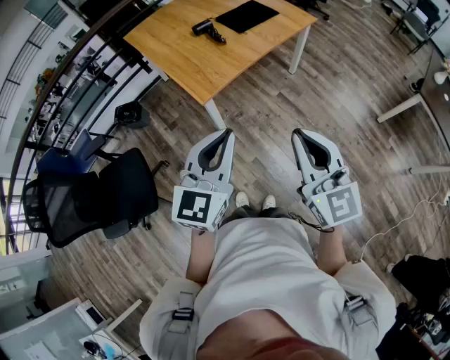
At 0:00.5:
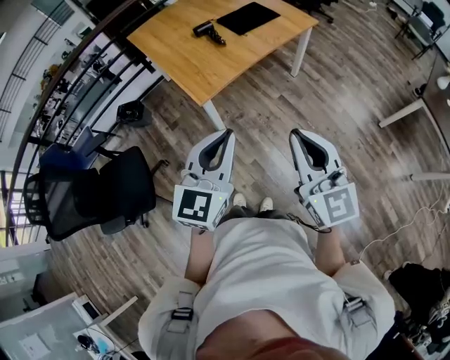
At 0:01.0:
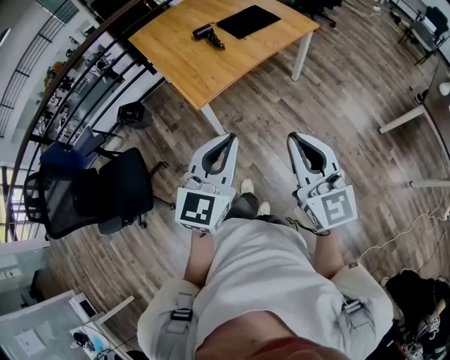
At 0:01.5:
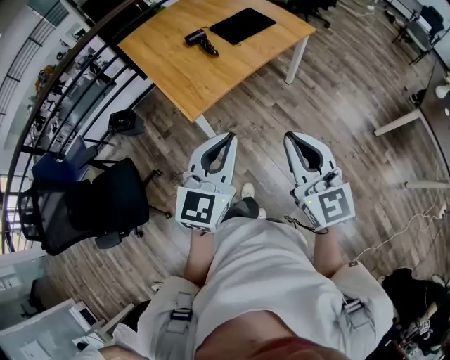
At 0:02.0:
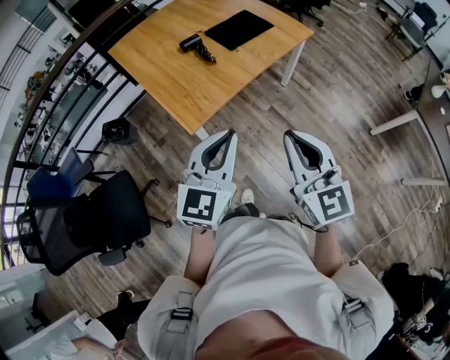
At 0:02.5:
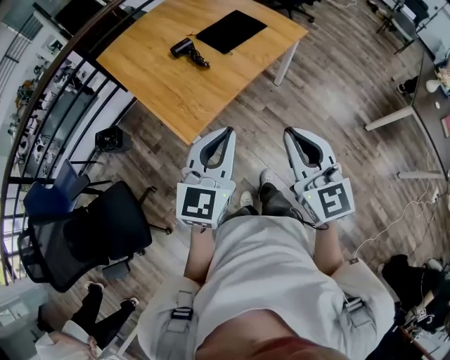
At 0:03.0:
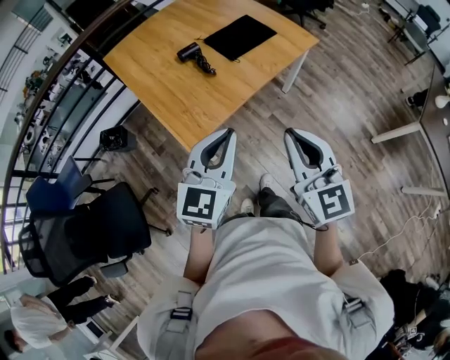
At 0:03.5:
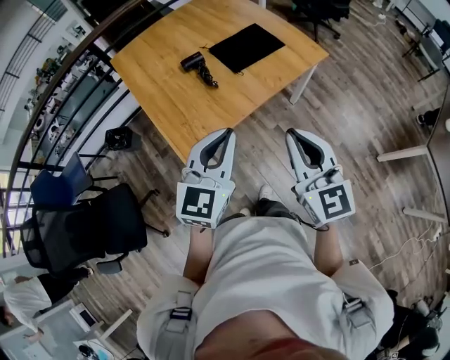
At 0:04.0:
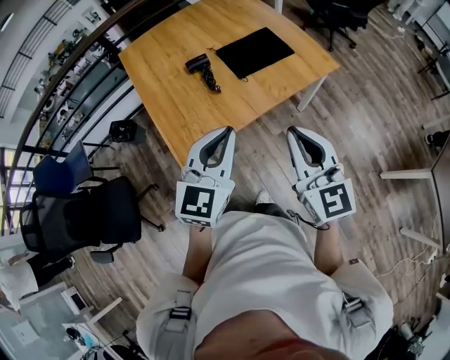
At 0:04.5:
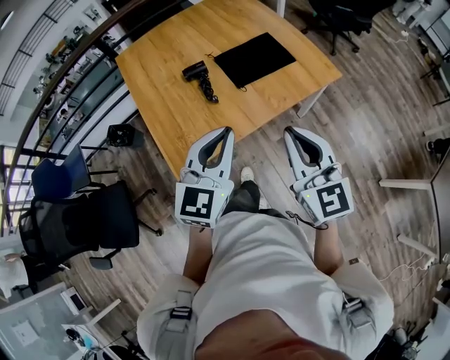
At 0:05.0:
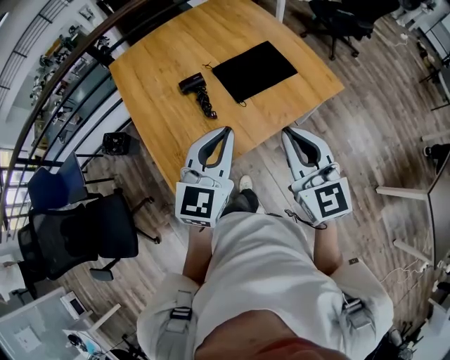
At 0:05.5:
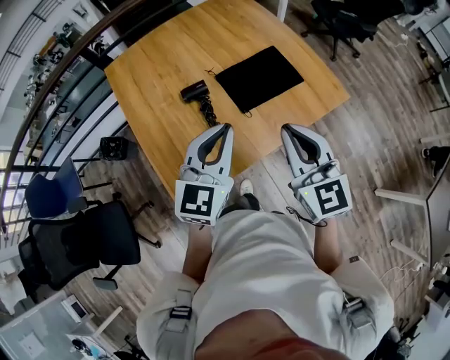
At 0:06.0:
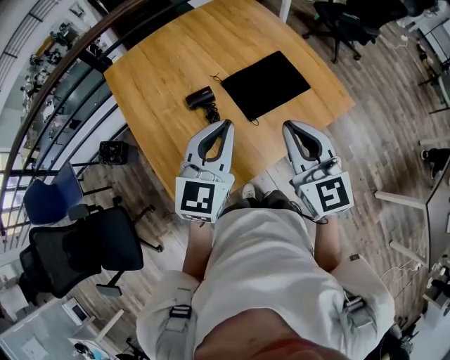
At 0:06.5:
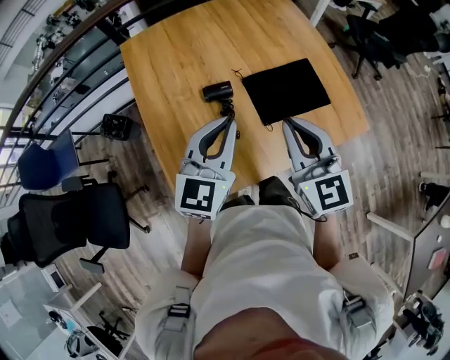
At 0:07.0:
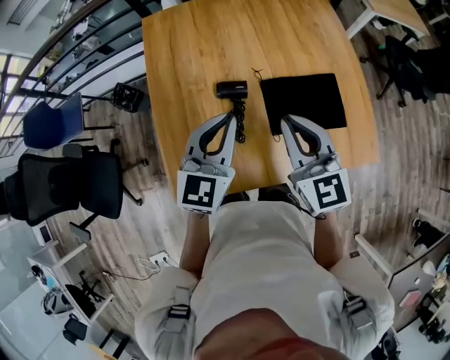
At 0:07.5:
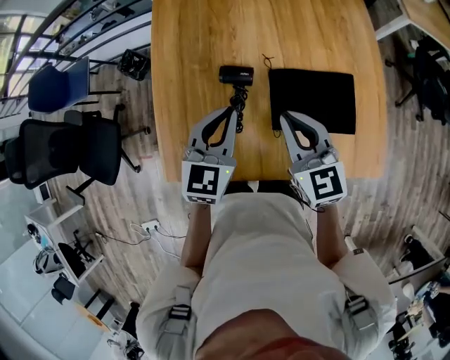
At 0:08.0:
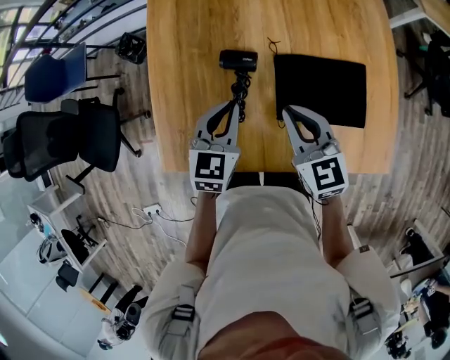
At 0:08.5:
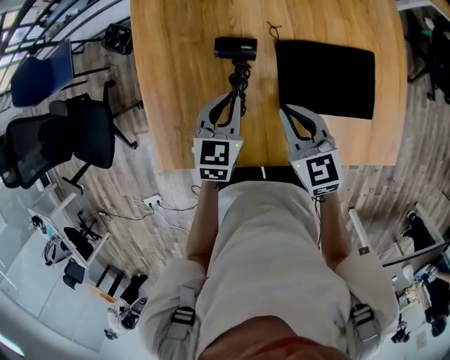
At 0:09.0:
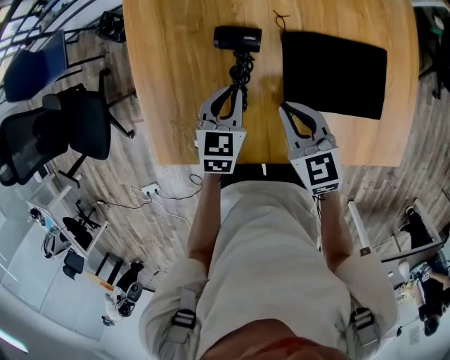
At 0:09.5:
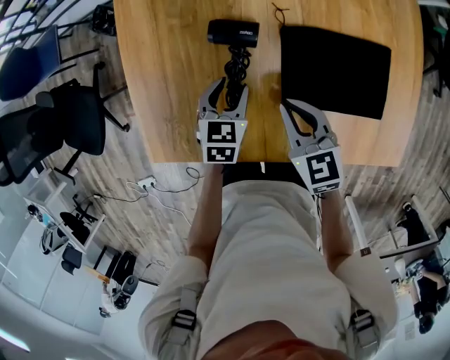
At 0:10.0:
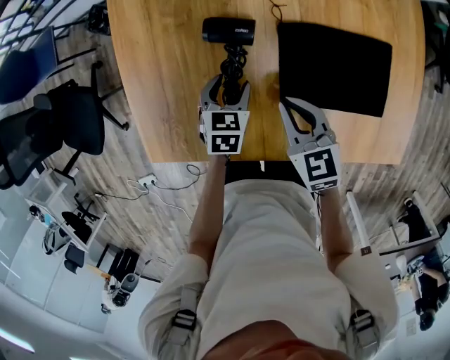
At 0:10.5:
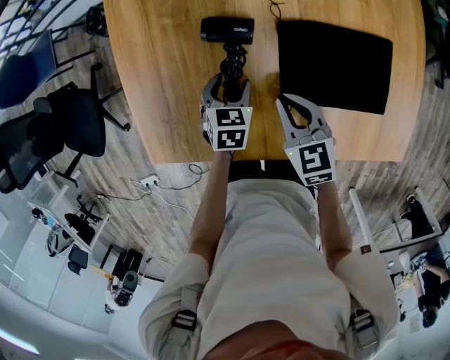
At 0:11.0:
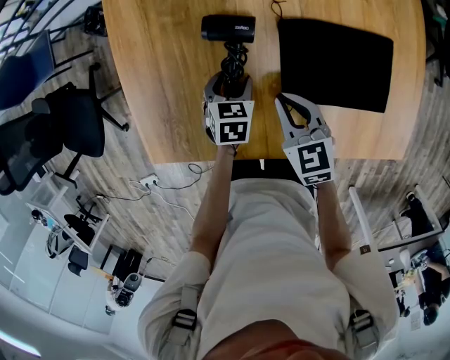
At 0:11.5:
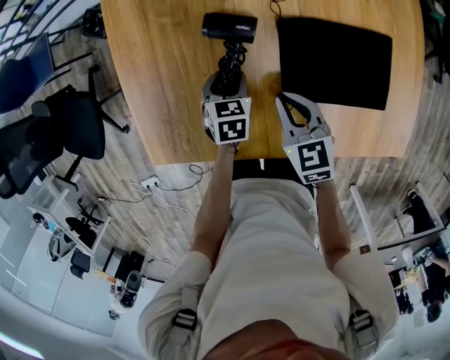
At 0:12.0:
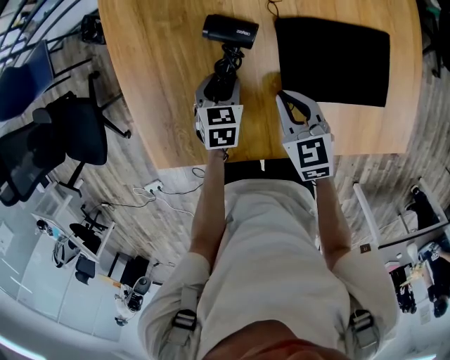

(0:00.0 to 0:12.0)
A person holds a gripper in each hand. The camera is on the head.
0:00.0 - 0:02.0: The two grippers go some 15 cm forward.
0:02.0 - 0:04.0: The grippers both shift forward by some 25 cm.
0:04.0 - 0:06.0: Both grippers travel together forward, approximately 25 cm.
0:06.0 - 0:08.0: Both grippers move downward, some 20 cm. The left gripper turns by about 40 degrees. The right gripper rotates approximately 40 degrees.
0:08.0 - 0:10.0: Both grippers travel together downward, about 15 cm. The left gripper swivels approximately 20 degrees, and opens up.
0:10.0 - 0:12.0: There are only small adjustments of the grippers.

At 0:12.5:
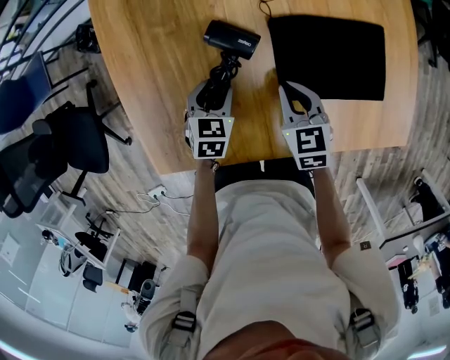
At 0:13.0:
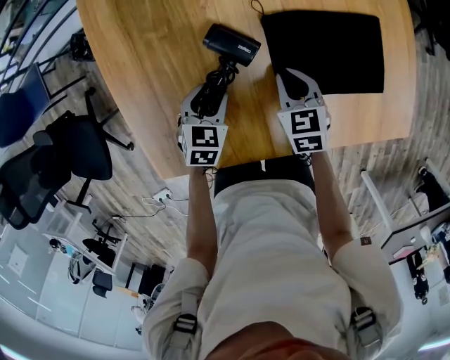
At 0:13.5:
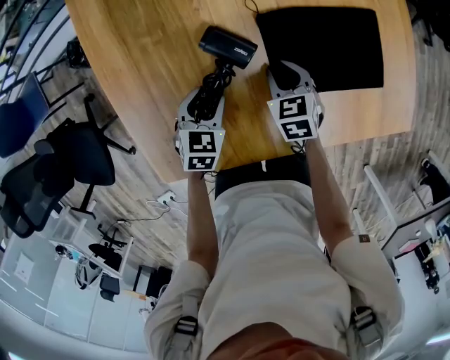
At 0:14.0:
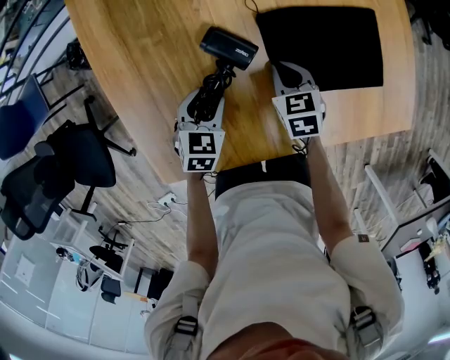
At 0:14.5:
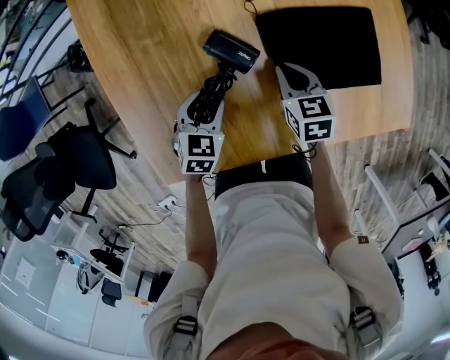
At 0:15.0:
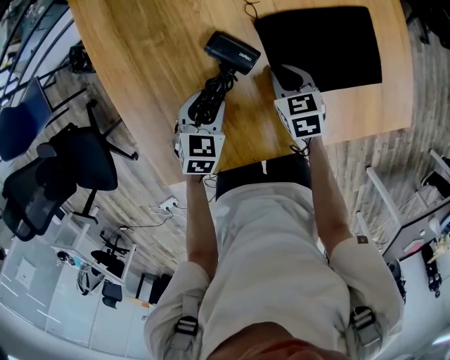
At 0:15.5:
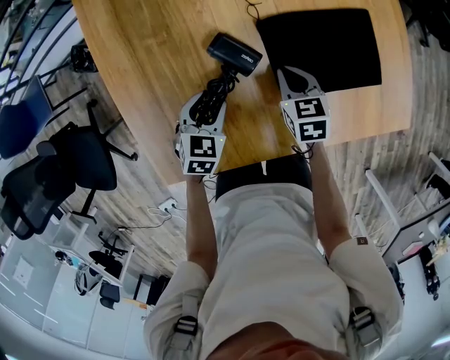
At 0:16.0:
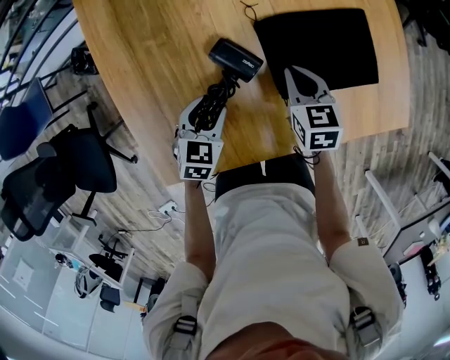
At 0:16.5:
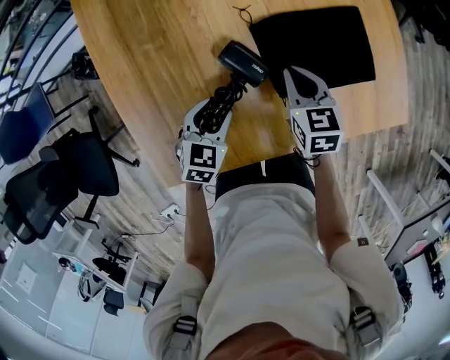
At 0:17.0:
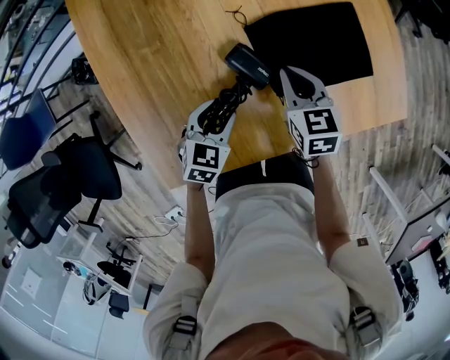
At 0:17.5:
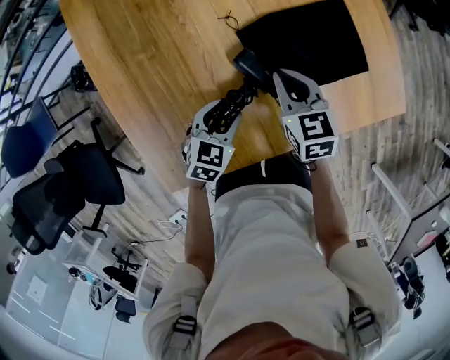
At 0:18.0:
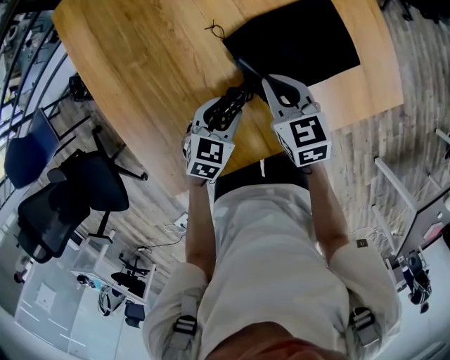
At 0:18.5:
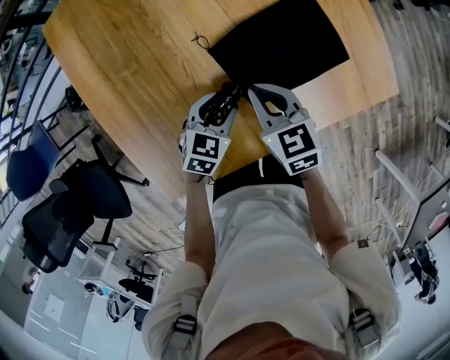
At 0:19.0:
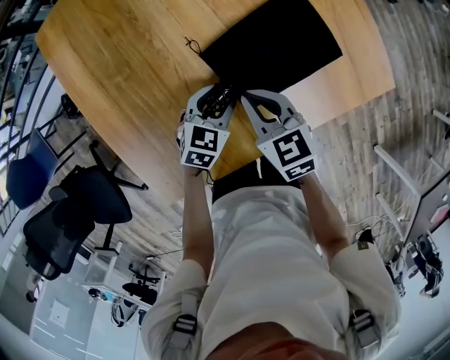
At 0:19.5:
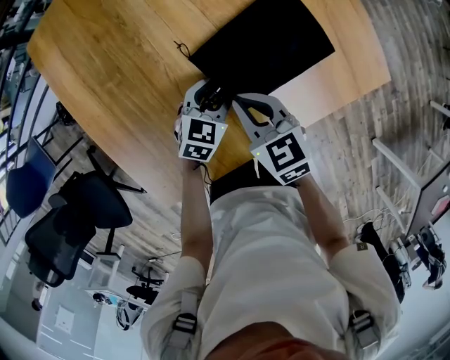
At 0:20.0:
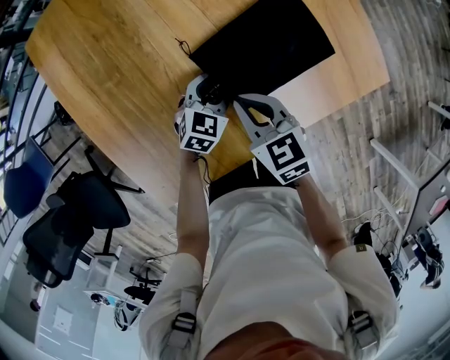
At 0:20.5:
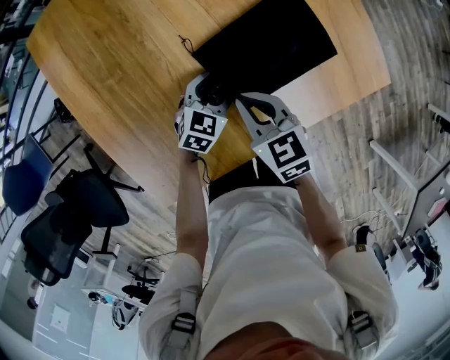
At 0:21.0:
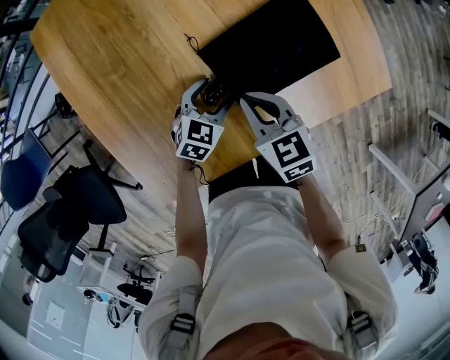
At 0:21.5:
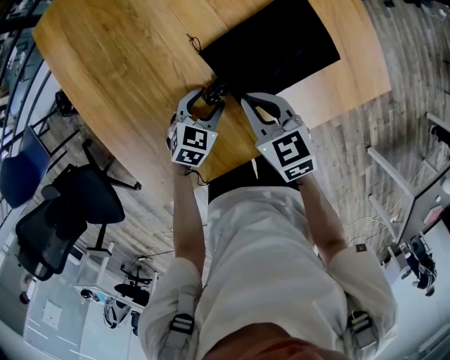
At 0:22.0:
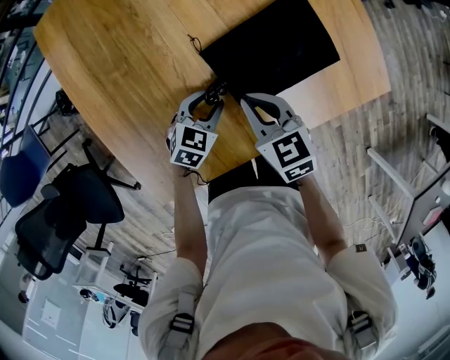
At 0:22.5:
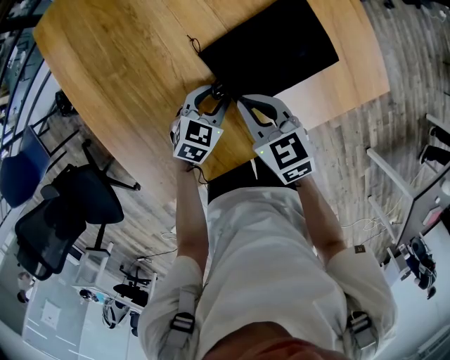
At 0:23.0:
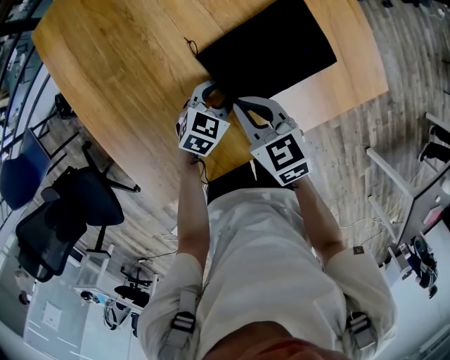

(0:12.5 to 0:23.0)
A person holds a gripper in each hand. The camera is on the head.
0:14.5 - 0:16.5: The right gripper goes approximately 5 cm upward.
0:16.5 - 0:19.0: The right gripper shifts about 5 cm backward, while the left gripper goes some 10 cm to the right.
0:19.0 - 0:21.0: The grippers stay close to where they were, moving slightly.
0:21.0 - 0:23.0: The left gripper closes.

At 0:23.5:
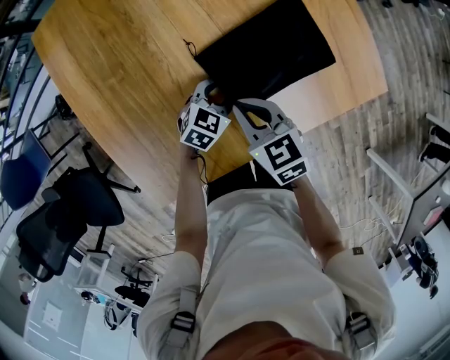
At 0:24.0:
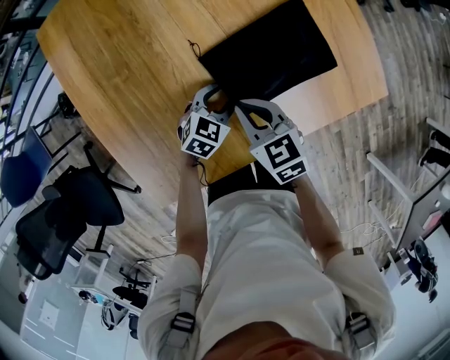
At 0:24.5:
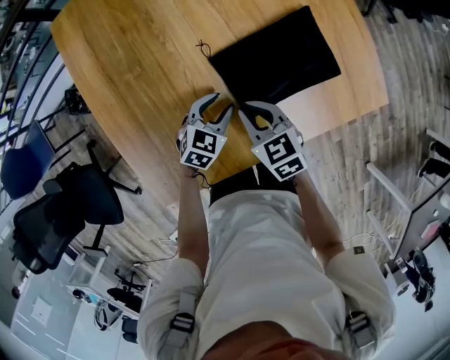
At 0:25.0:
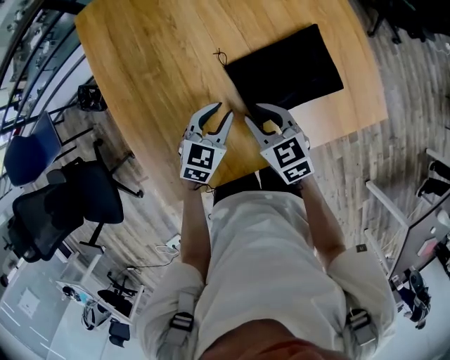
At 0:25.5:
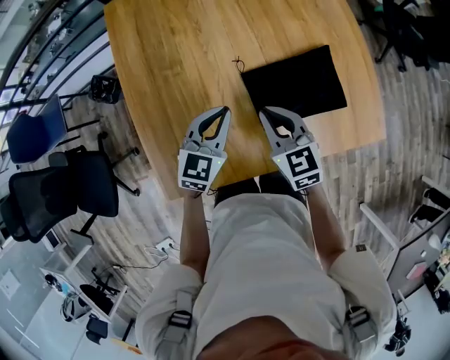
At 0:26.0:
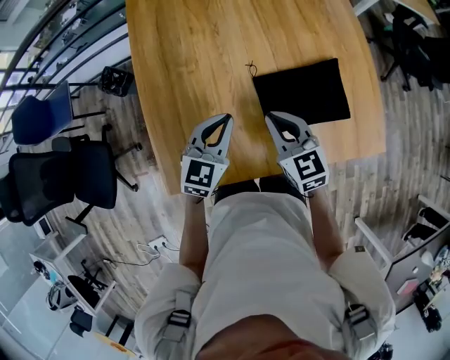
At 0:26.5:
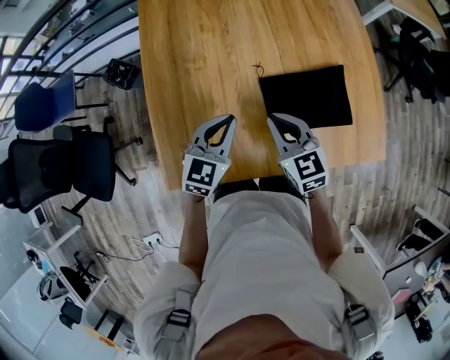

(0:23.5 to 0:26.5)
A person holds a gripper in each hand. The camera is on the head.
0:23.5 - 0:25.0: The left gripper shifts some 15 cm upward and to the left, while the right gripper opens.
0:25.0 - 0:26.5: The left gripper heads upward and to the left, covering roughly 10 cm, and closes up. The right gripper moves upward, roughly 10 cm, and closes its fingers.

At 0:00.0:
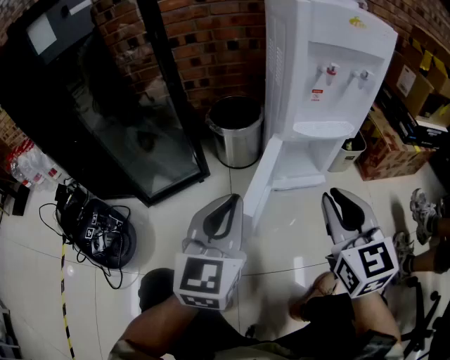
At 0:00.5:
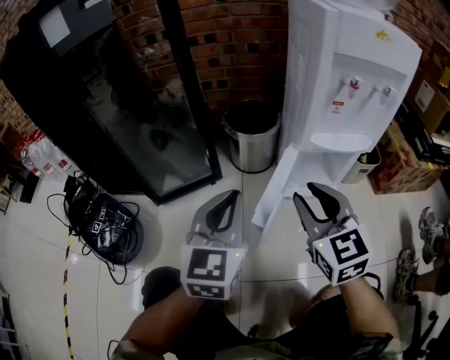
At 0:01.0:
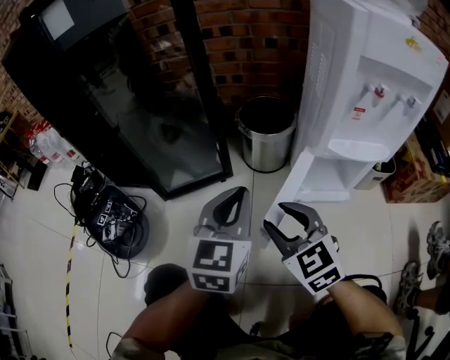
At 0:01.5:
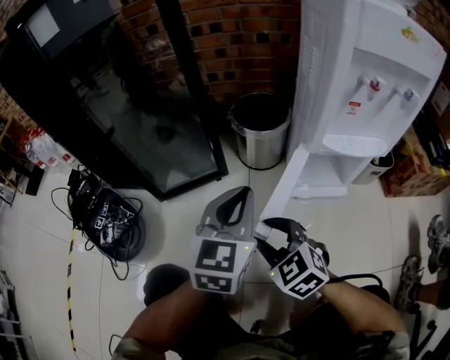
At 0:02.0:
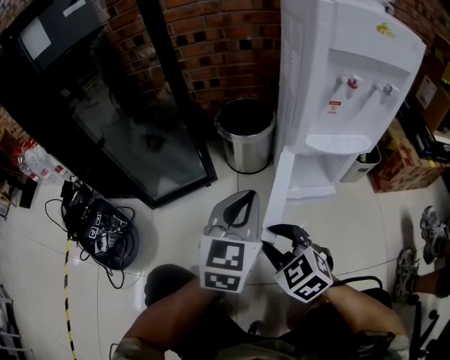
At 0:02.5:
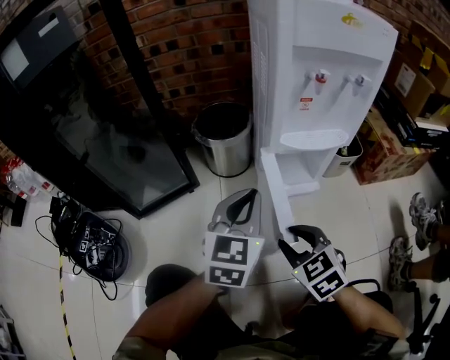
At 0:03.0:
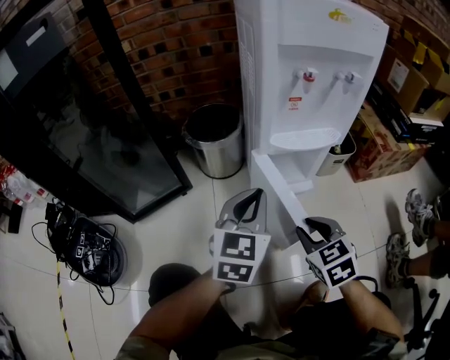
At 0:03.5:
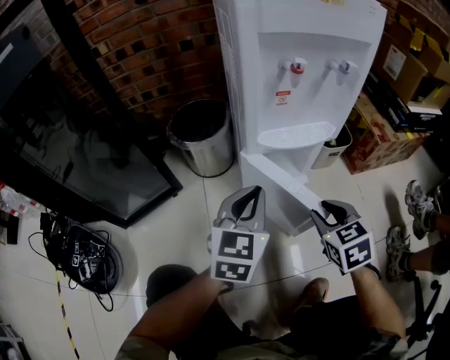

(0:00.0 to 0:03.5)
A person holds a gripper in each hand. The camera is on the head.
0:00.0 - 0:02.0: The left gripper travels forward and downward by approximately 10 cm, while the right gripper shifts approximately 20 cm downward and to the left, and rotates some 40 degrees.
0:02.0 - 0:03.5: The left gripper moves to the right, some 10 cm. Meanwhile the right gripper shifts roughly 25 cm to the right, and turns by some 40 degrees.
